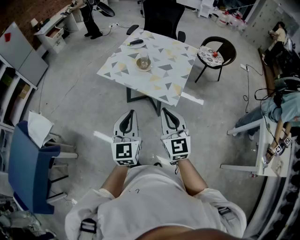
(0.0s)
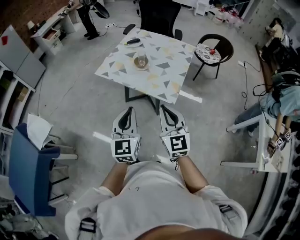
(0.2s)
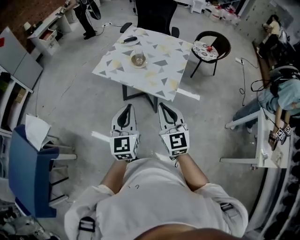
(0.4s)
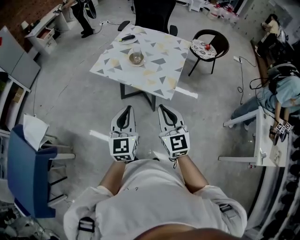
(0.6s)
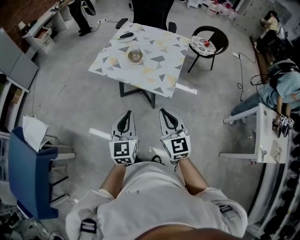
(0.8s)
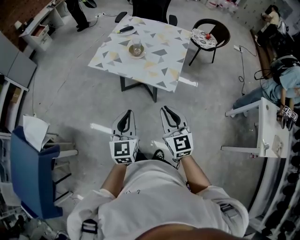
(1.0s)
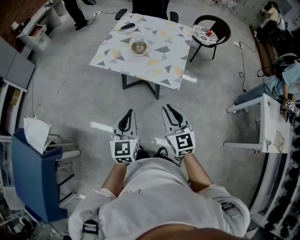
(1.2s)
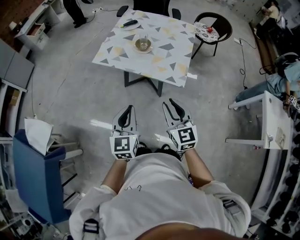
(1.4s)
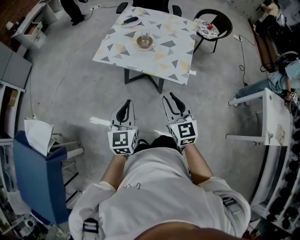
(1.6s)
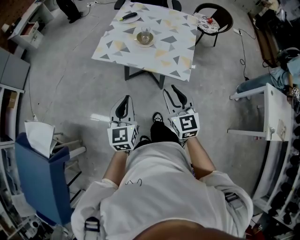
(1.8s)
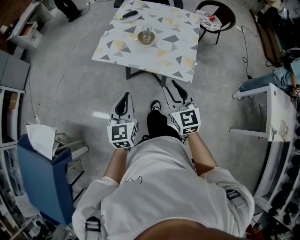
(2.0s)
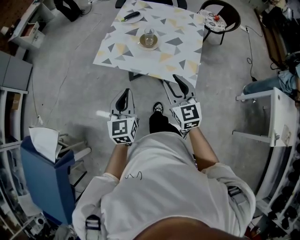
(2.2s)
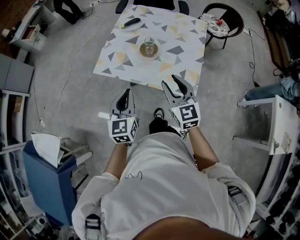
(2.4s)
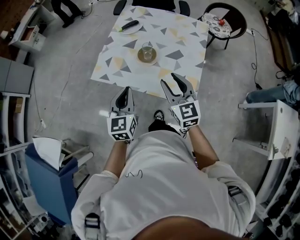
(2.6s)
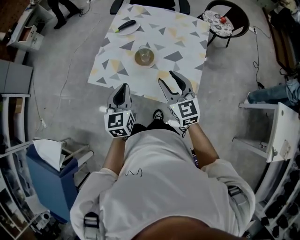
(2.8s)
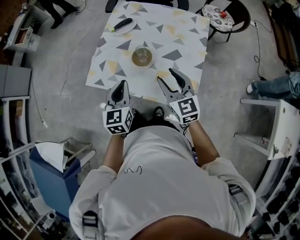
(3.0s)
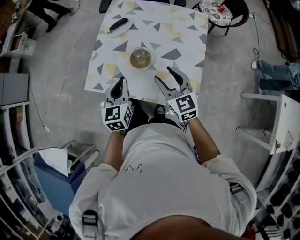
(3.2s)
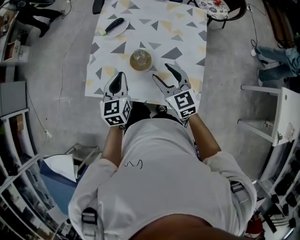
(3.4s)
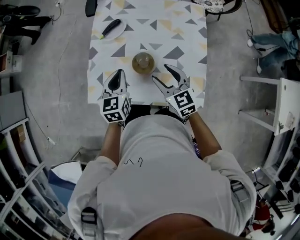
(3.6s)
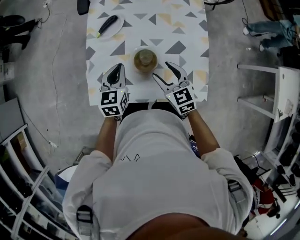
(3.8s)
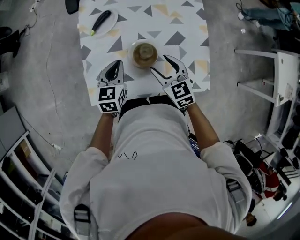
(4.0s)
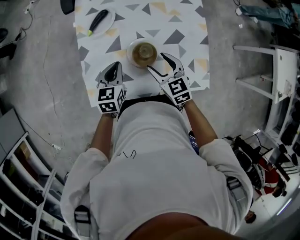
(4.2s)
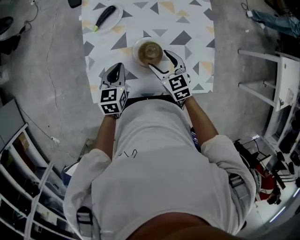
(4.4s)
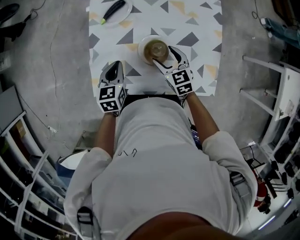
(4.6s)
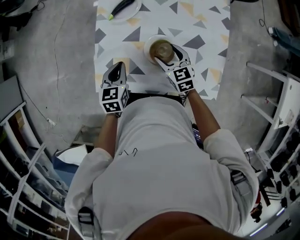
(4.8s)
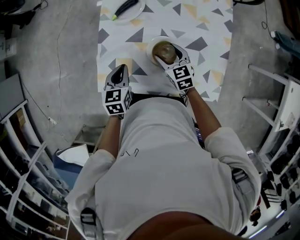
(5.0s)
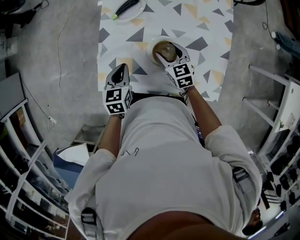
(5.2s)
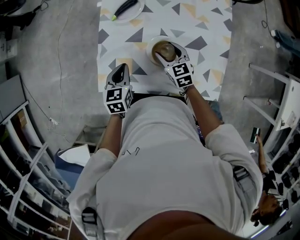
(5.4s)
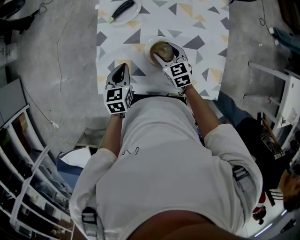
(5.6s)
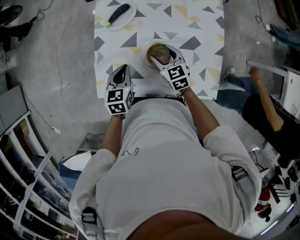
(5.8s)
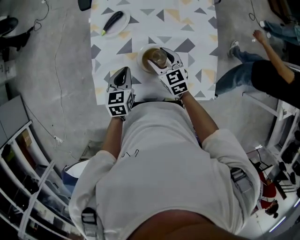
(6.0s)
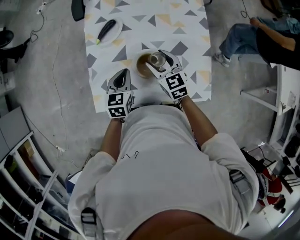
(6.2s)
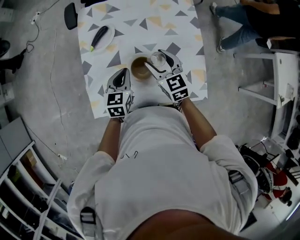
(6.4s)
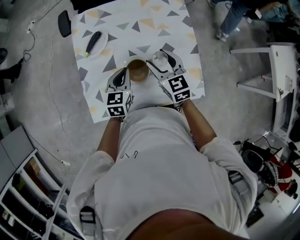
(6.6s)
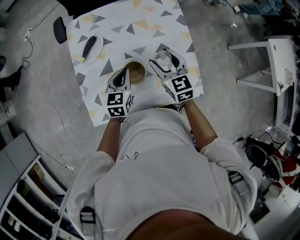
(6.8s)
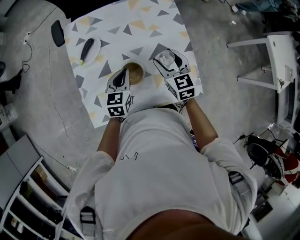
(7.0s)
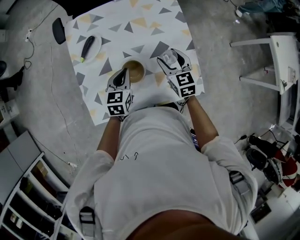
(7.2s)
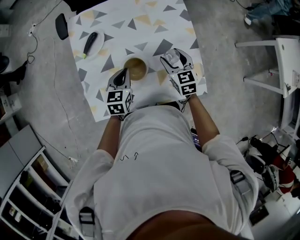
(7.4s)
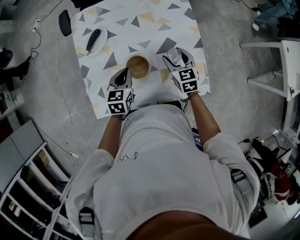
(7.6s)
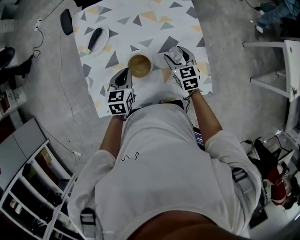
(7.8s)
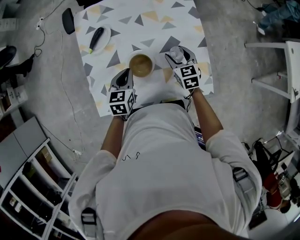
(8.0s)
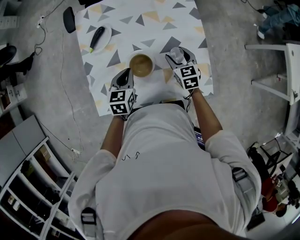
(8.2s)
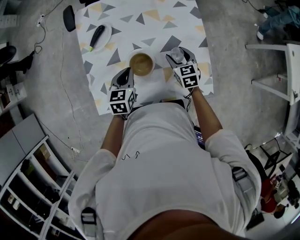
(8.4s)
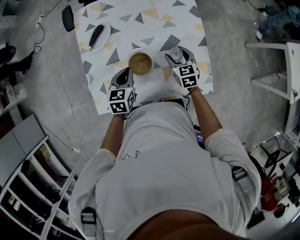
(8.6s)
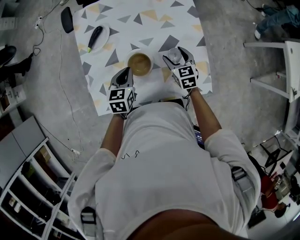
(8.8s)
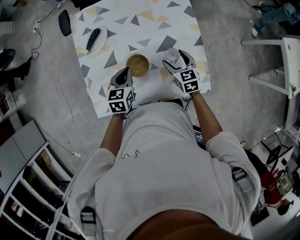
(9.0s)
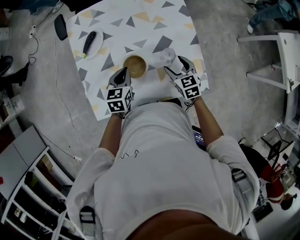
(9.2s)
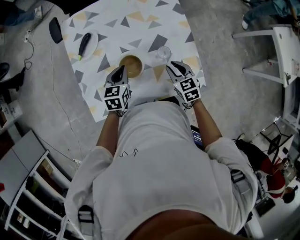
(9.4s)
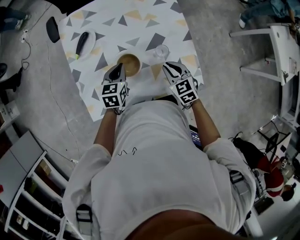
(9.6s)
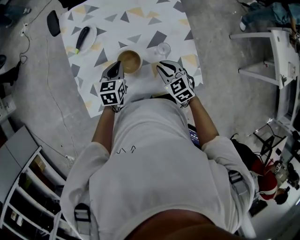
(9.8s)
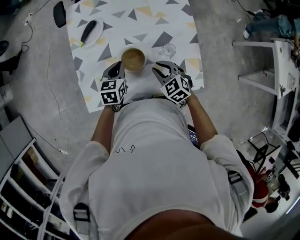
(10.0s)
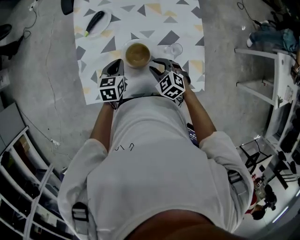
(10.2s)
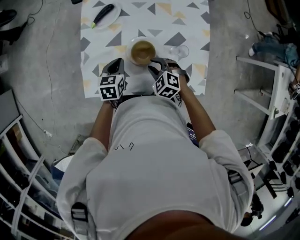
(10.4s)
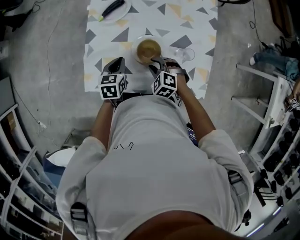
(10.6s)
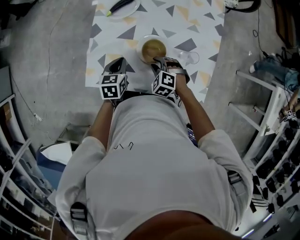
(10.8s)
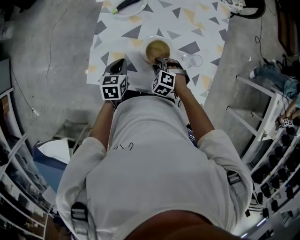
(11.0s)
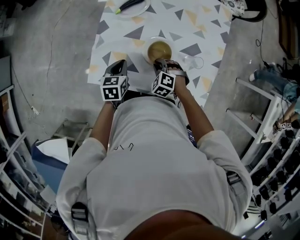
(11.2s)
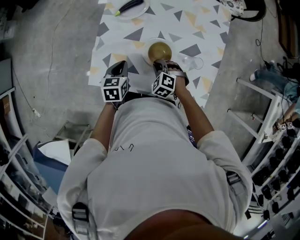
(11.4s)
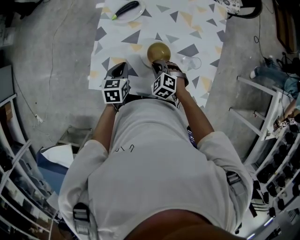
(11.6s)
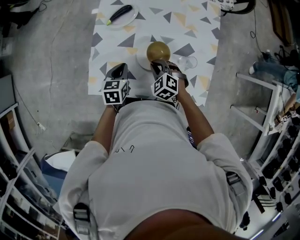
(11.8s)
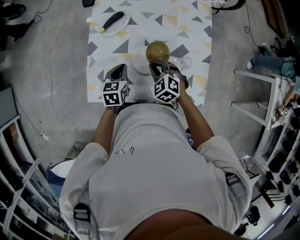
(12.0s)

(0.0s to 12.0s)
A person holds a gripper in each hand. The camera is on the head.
0.0s - 1.6s: Both grippers move to the left and downward, roughly 15 cm.
1.6s - 3.0s: Both grippers travel together forward, roughly 35 cm.
3.0s - 4.4s: The left gripper travels forward, downward and to the left by roughly 25 cm, and changes its angle by about 30 degrees, while the right gripper shifts approximately 25 cm downward, forward and to the left, rotates roughly 20 degrees, and opens.
6.0s - 7.6s: The left gripper moves to the right, about 10 cm. Meanwhile the right gripper shifts roughly 15 cm to the right, and swivels approximately 20 degrees.
7.6s - 9.0s: There are only small adjustments of the grippers.
9.0s - 10.4s: The left gripper travels to the left by about 5 cm, while the right gripper goes about 15 cm to the left and backward, twists approximately 50 degrees counterclockwise, seen from behind, and closes.
10.4s - 12.0s: The right gripper moves approximately 5 cm.

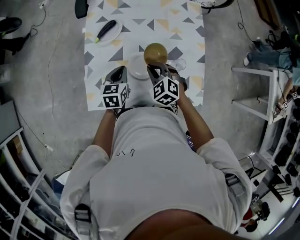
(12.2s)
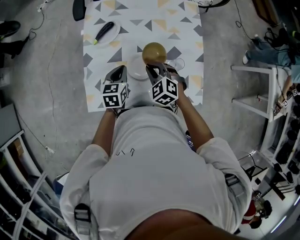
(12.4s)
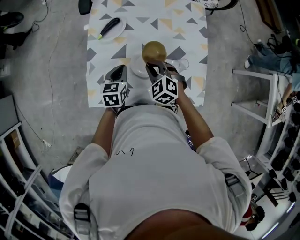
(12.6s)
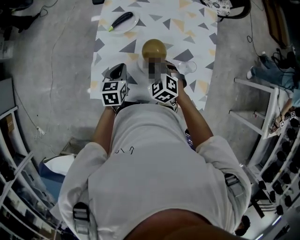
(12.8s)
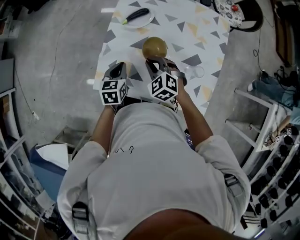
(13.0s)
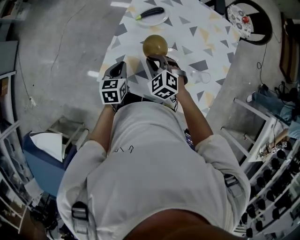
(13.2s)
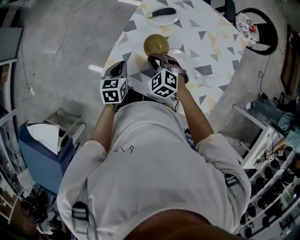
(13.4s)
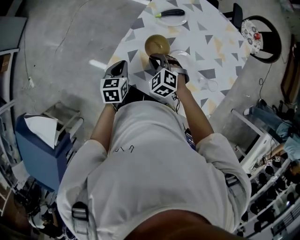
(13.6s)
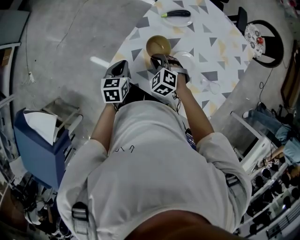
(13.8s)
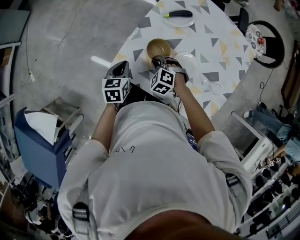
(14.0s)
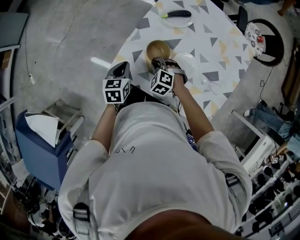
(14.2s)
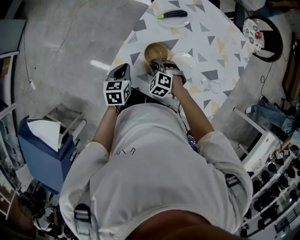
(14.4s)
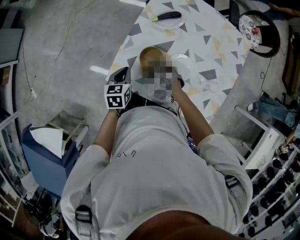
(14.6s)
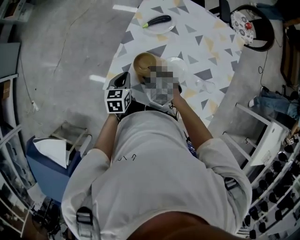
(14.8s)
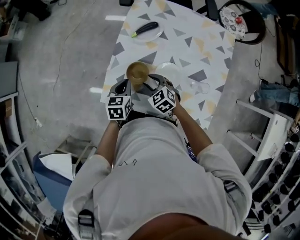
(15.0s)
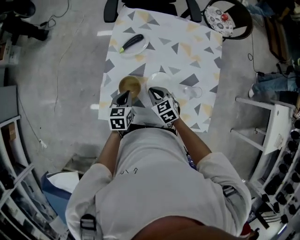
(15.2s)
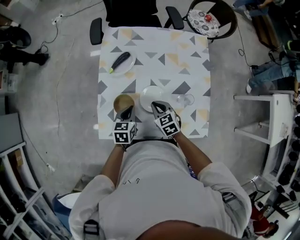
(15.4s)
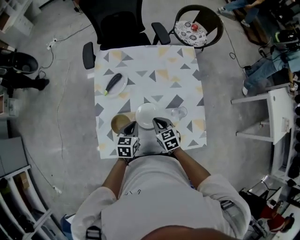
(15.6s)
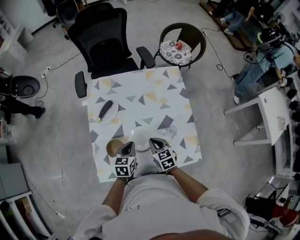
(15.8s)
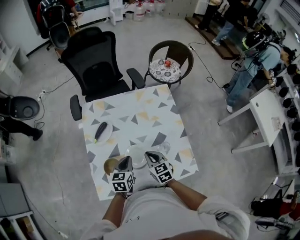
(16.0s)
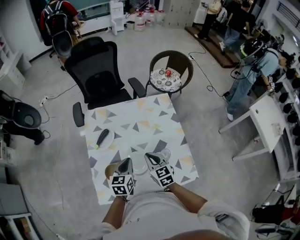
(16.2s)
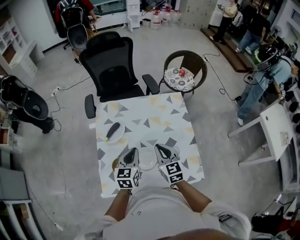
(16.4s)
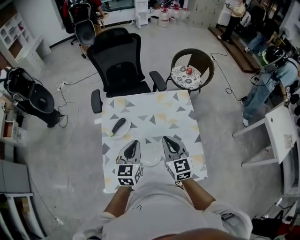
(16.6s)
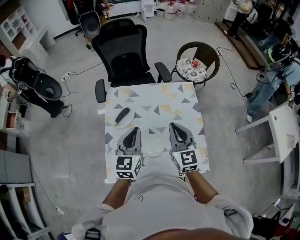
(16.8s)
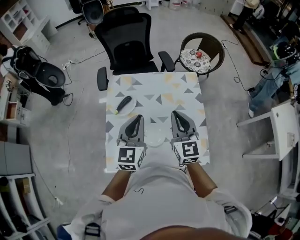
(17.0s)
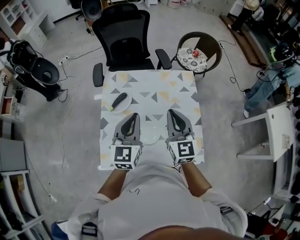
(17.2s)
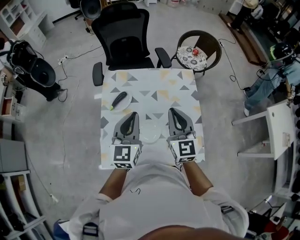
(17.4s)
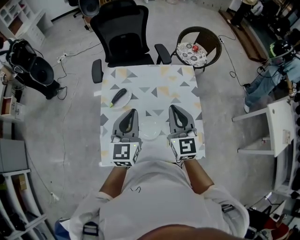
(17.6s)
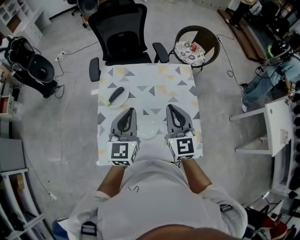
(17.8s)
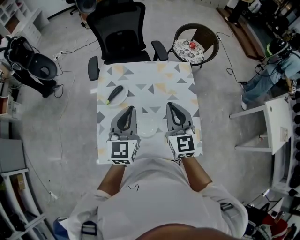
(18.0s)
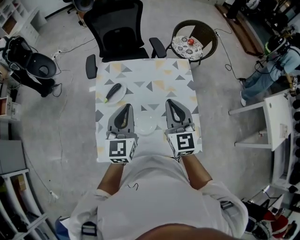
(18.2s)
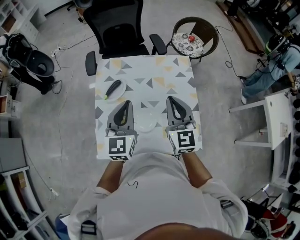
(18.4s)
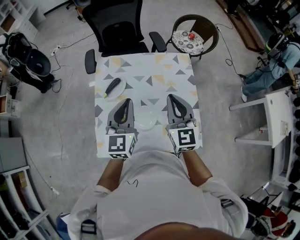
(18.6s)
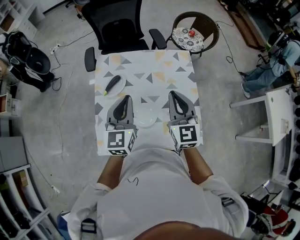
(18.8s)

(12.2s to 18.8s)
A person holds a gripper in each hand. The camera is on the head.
12.2s - 13.8s: The right gripper moves roughly 20 cm, and rotates about 40 degrees. The left gripper shifts by about 20 cm, and turns by approximately 30 degrees.
13.8s - 15.4s: The left gripper moves approximately 20 cm, and turns by some 30 degrees, while the right gripper ends up roughly 15 cm from where it was, rolls clockwise, seen from behind, by some 60 degrees, and opens, then closes once more.
15.4s - 17.2s: Both grippers travel together upward, some 25 cm. The right gripper points its fingers some 40 degrees further upward. The left gripper angles its fingers upward, by about 30 degrees.
17.2s - 18.8s: The grippers make only small movements.

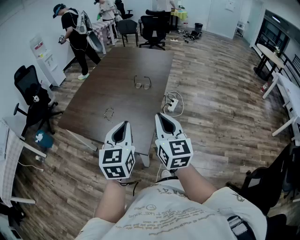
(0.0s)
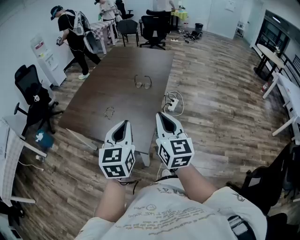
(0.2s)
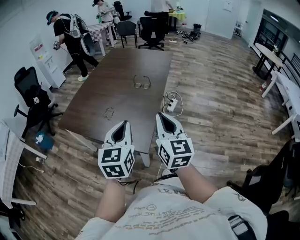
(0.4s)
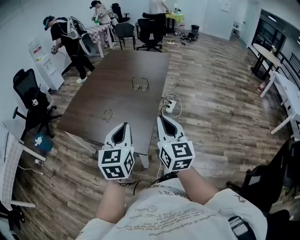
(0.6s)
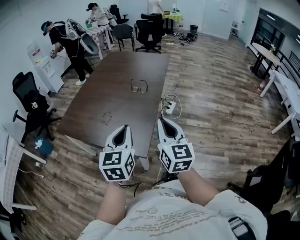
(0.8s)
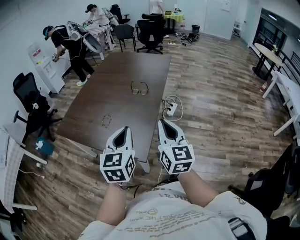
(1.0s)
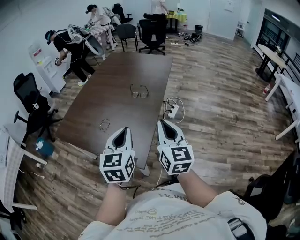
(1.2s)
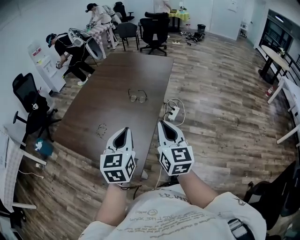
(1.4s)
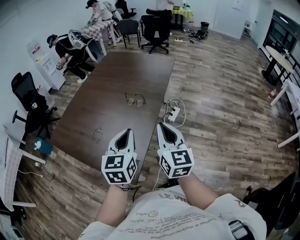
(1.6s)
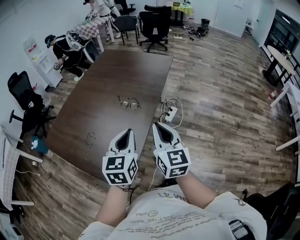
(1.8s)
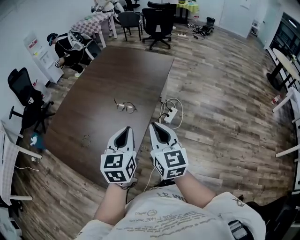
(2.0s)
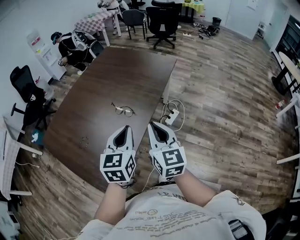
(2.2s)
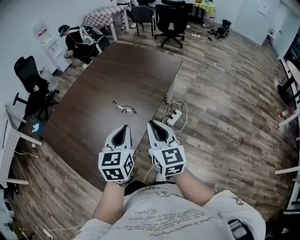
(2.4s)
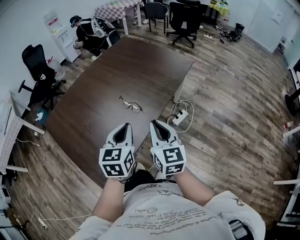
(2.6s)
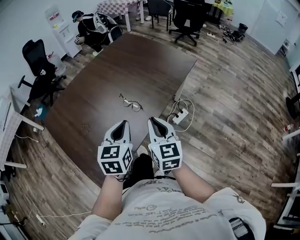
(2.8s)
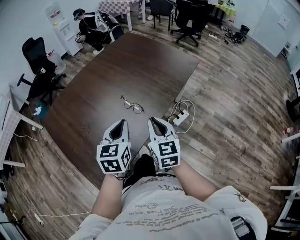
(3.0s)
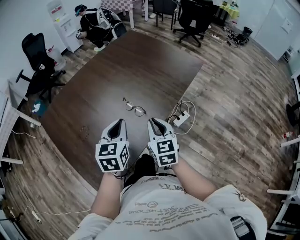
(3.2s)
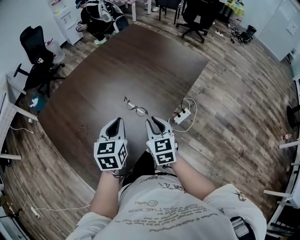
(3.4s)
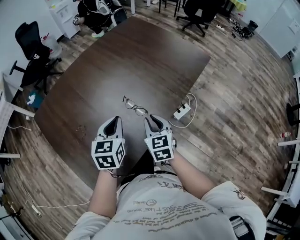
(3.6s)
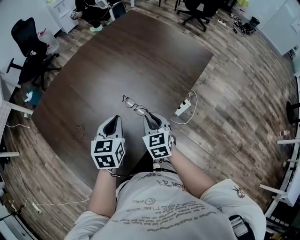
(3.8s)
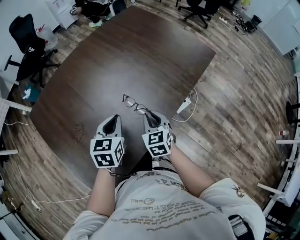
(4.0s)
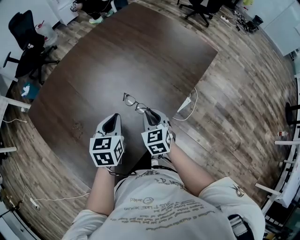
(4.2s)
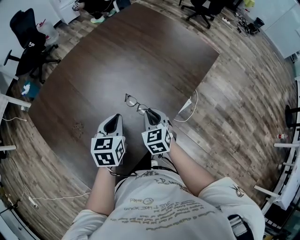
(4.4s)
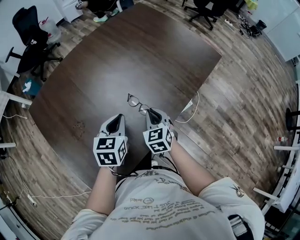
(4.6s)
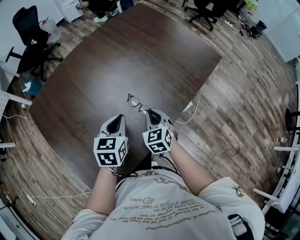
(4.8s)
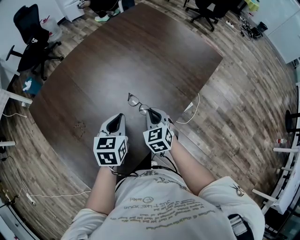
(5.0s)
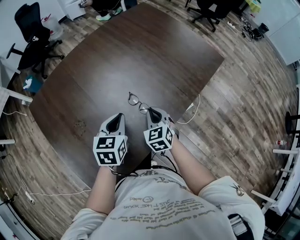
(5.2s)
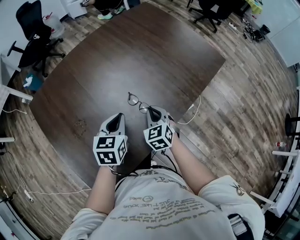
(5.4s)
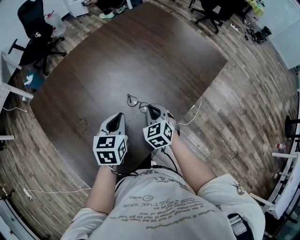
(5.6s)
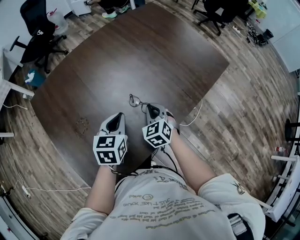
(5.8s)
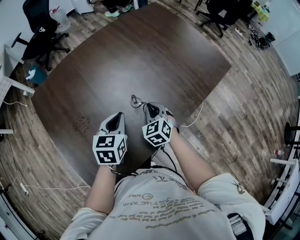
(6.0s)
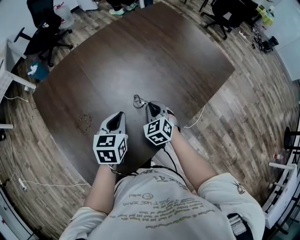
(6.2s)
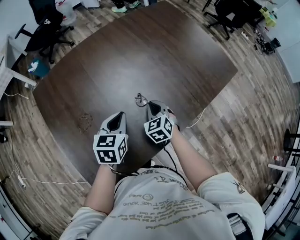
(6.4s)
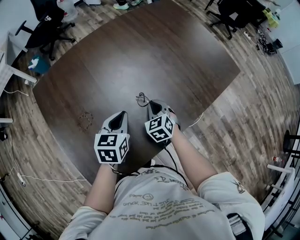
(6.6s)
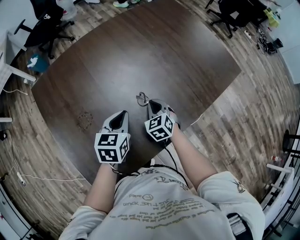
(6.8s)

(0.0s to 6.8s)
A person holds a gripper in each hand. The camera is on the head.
0.0s - 1.4s: The two grippers go roughly 15 cm forward and to the right.
1.4s - 2.8s: The left gripper is displaced forward and to the right by about 25 cm; the right gripper heads forward, covering approximately 25 cm, and swivels approximately 30 degrees.
2.8s - 4.0s: The right gripper travels downward and forward by approximately 25 cm, and swivels about 30 degrees. The left gripper shifts about 20 cm forward, downward and to the left.
4.0s - 5.4s: The right gripper ends up some 5 cm from where it was.
5.4s - 6.8s: The right gripper shifts approximately 10 cm downward and to the left. Meanwhile the left gripper changes place by about 5 cm.
